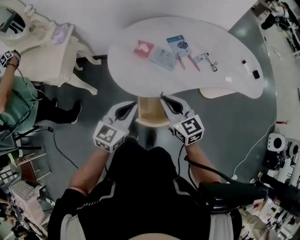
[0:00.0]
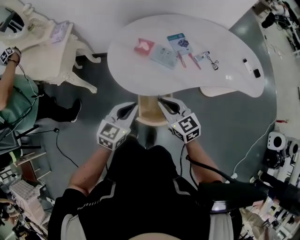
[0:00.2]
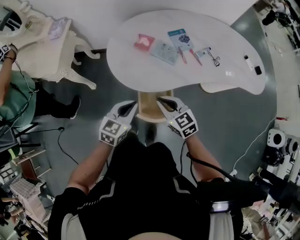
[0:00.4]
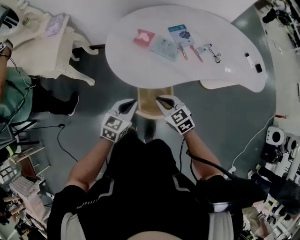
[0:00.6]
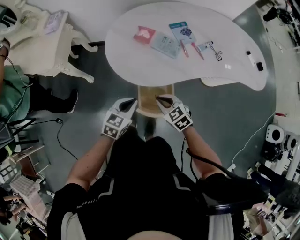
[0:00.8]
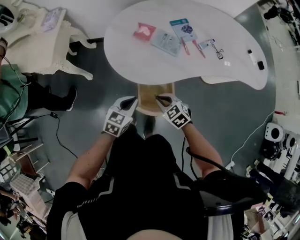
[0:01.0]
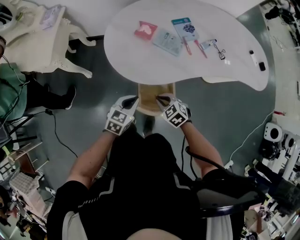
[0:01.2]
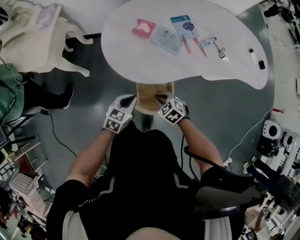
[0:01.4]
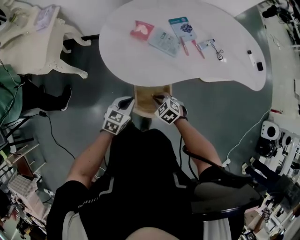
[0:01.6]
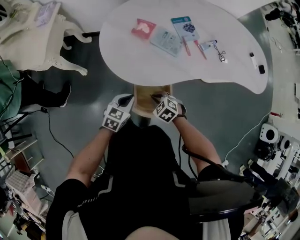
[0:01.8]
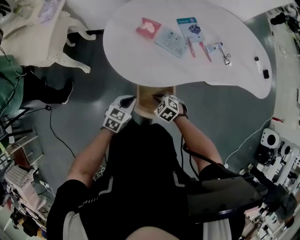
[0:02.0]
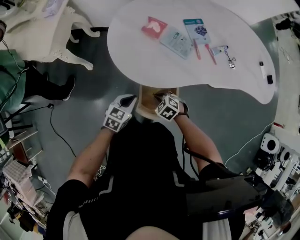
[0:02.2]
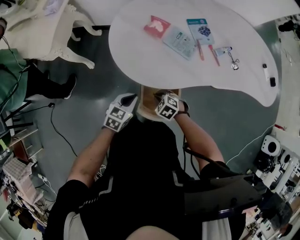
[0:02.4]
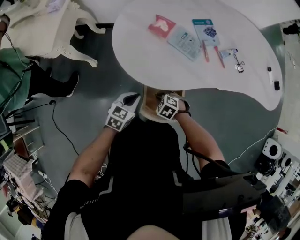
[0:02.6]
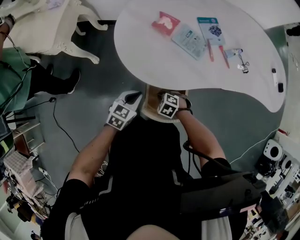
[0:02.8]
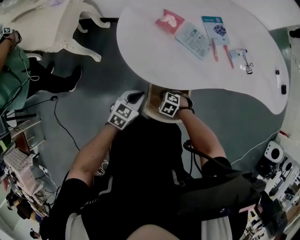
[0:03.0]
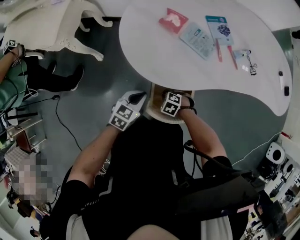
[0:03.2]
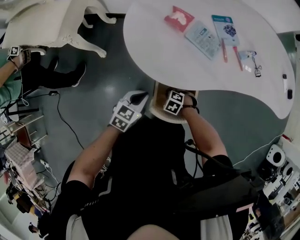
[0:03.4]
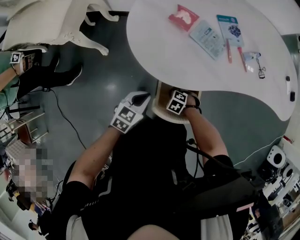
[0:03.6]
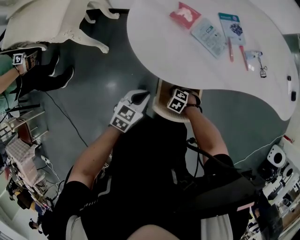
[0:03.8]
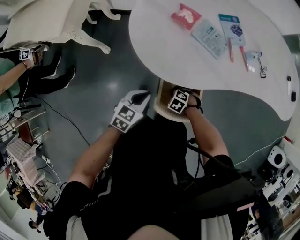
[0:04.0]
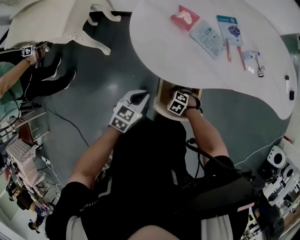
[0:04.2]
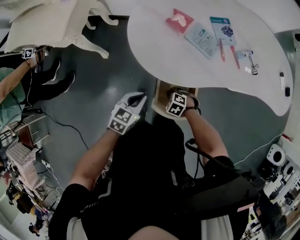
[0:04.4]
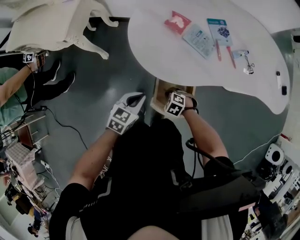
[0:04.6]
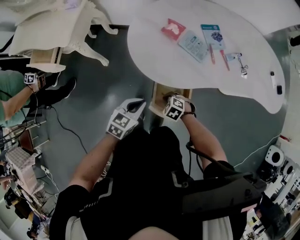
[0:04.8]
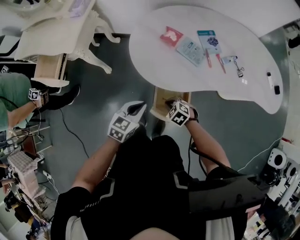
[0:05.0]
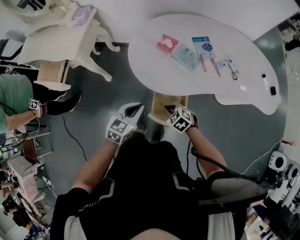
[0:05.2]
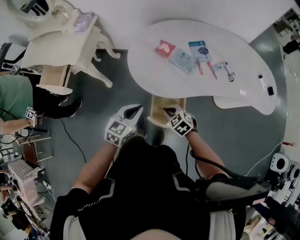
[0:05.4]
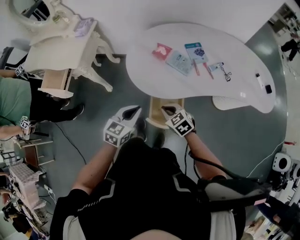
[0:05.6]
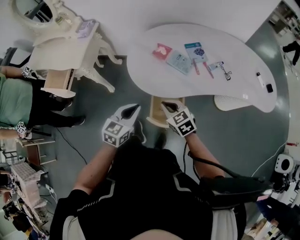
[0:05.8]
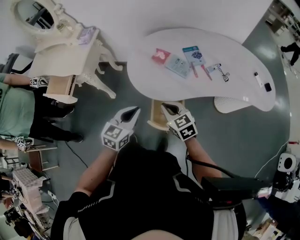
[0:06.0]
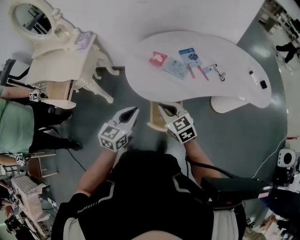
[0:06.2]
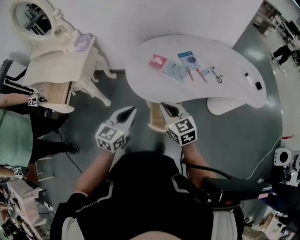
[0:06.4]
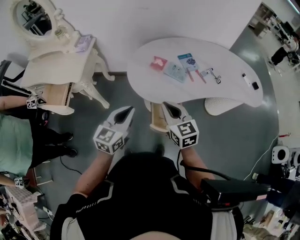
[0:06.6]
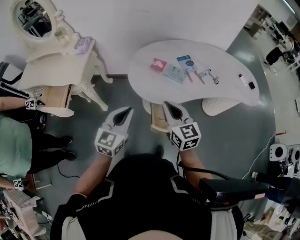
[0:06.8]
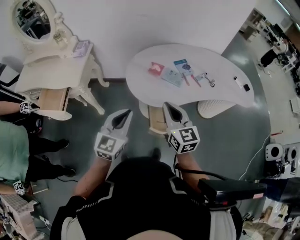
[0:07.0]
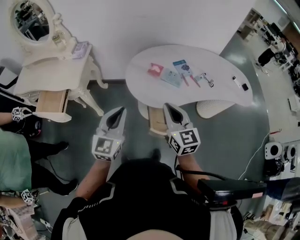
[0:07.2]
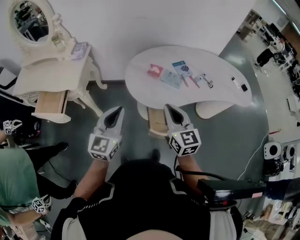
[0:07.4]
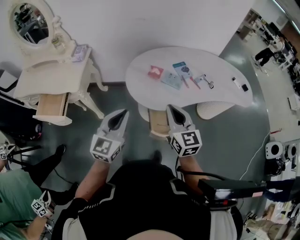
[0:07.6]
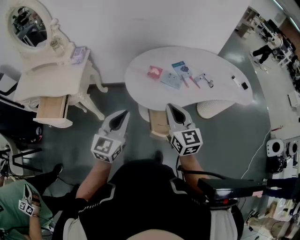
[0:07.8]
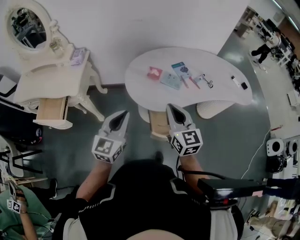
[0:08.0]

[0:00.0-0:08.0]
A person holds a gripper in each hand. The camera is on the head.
0:00.0 to 0:01.6: Both grippers move downward, about 25 cm. The right gripper tips its fingers downward by roughly 40 degrees, while the left gripper turns by approximately 20 degrees.
0:01.6 to 0:03.2: The left gripper is displaced downward by some 5 cm. The right gripper is displaced downward by some 15 cm, and swivels approximately 30 degrees.
0:03.2 to 0:04.8: Both grippers move upward, approximately 10 cm.
0:04.8 to 0:06.4: The right gripper moves upward, about 35 cm, and tilts its fingers approximately 50 degrees upward. Meanwhile the left gripper heads upward, covering approximately 20 cm, and swivels approximately 20 degrees.
0:06.4 to 0:08.0: The right gripper heads upward, covering some 10 cm, and rotates about 20 degrees, while the left gripper travels to the left and upward by roughly 10 cm.

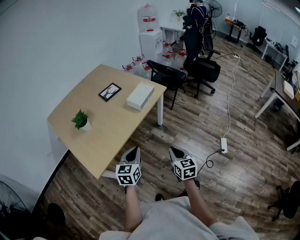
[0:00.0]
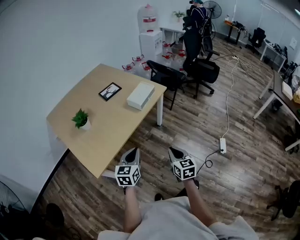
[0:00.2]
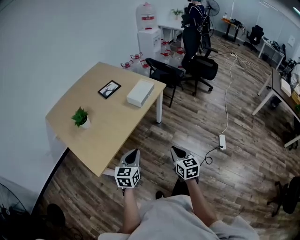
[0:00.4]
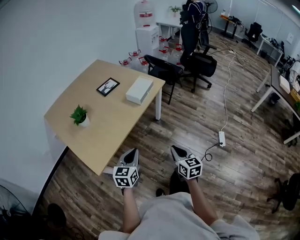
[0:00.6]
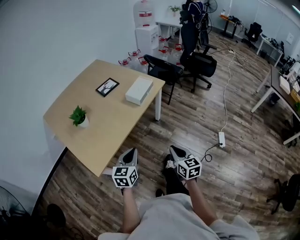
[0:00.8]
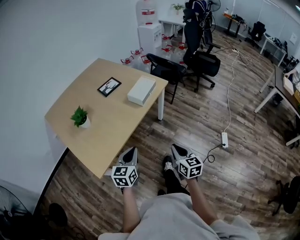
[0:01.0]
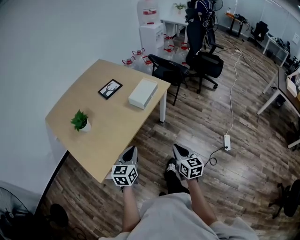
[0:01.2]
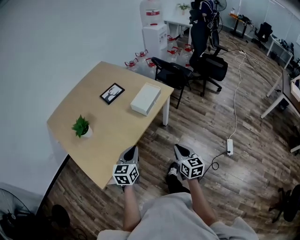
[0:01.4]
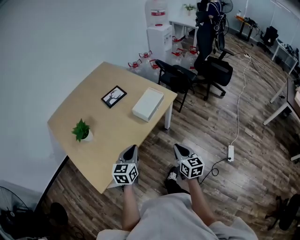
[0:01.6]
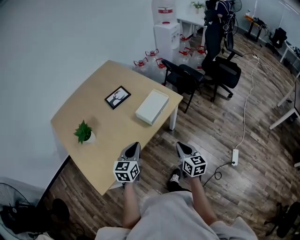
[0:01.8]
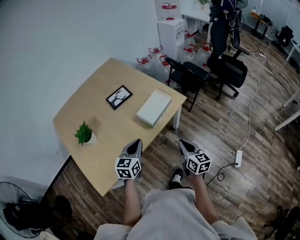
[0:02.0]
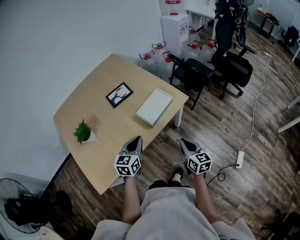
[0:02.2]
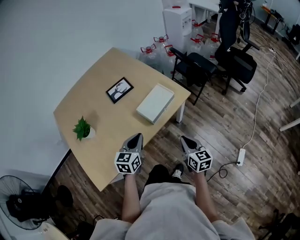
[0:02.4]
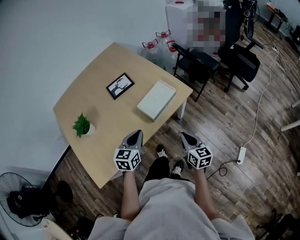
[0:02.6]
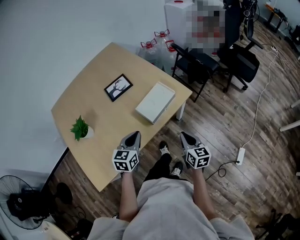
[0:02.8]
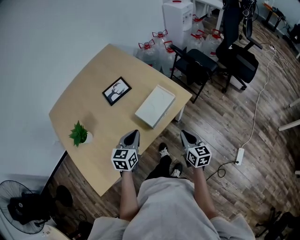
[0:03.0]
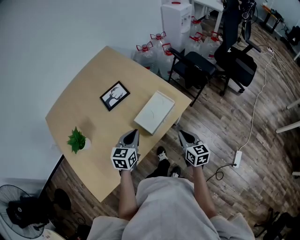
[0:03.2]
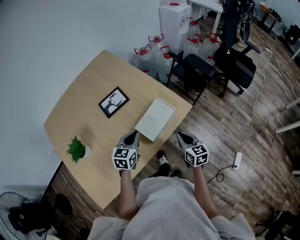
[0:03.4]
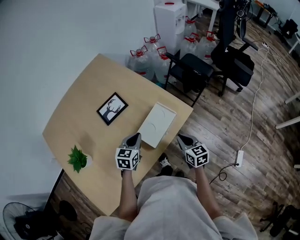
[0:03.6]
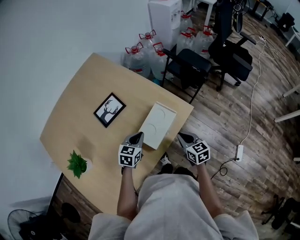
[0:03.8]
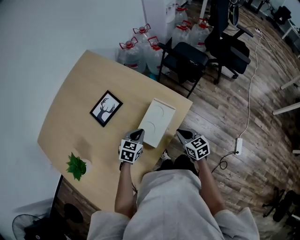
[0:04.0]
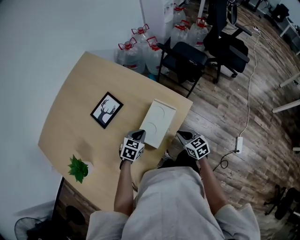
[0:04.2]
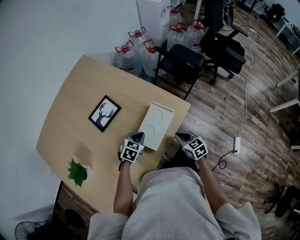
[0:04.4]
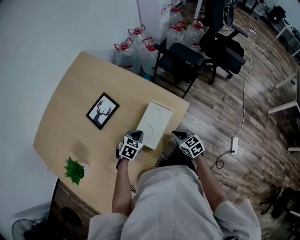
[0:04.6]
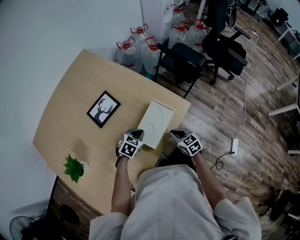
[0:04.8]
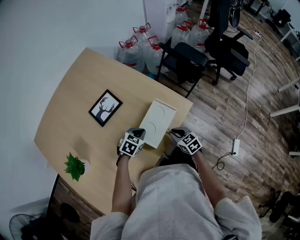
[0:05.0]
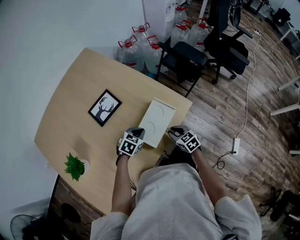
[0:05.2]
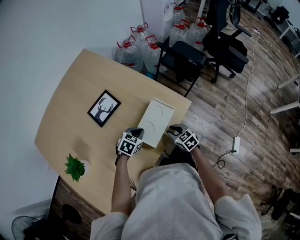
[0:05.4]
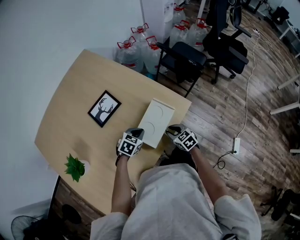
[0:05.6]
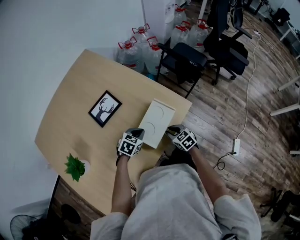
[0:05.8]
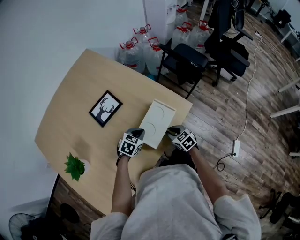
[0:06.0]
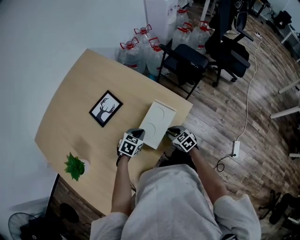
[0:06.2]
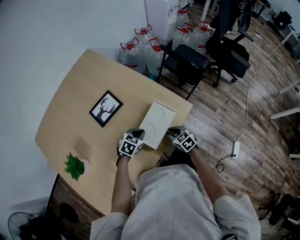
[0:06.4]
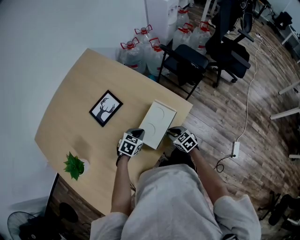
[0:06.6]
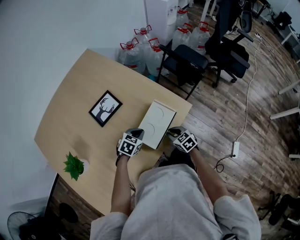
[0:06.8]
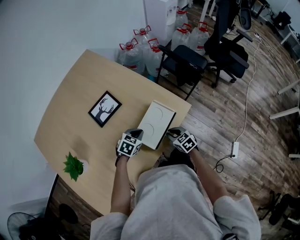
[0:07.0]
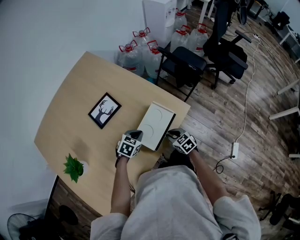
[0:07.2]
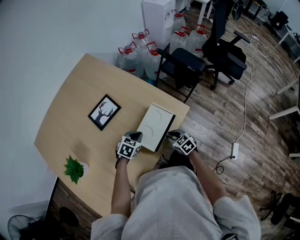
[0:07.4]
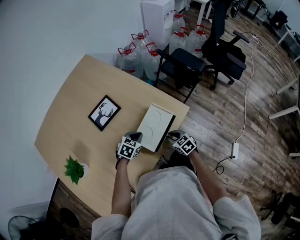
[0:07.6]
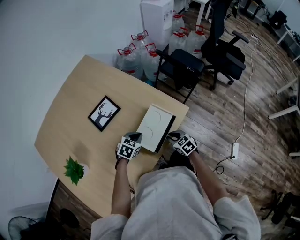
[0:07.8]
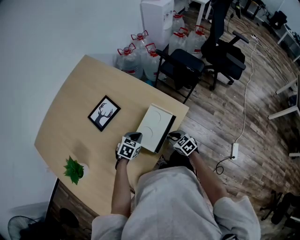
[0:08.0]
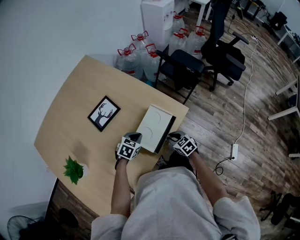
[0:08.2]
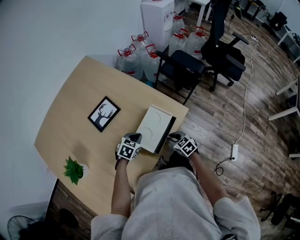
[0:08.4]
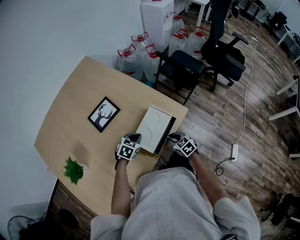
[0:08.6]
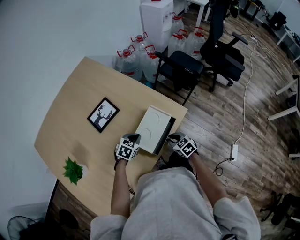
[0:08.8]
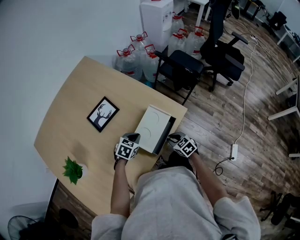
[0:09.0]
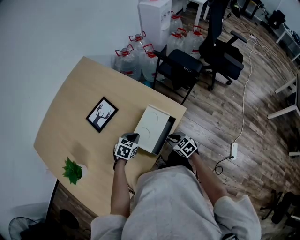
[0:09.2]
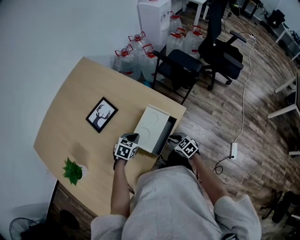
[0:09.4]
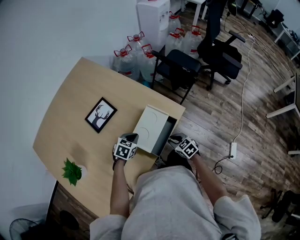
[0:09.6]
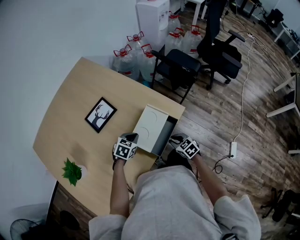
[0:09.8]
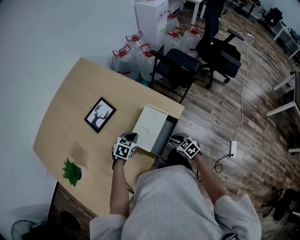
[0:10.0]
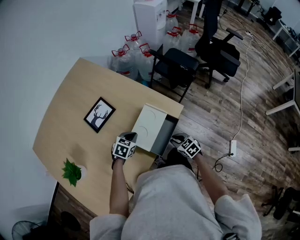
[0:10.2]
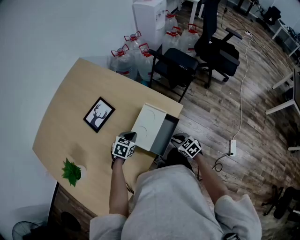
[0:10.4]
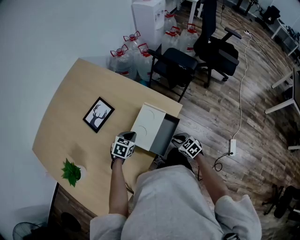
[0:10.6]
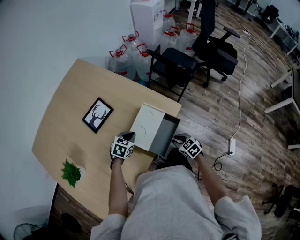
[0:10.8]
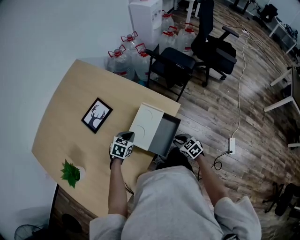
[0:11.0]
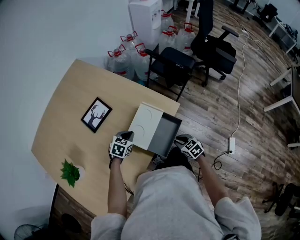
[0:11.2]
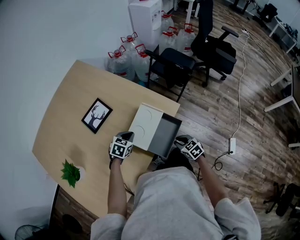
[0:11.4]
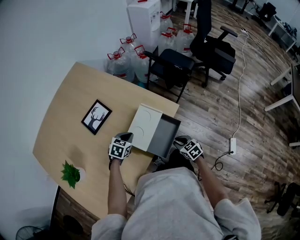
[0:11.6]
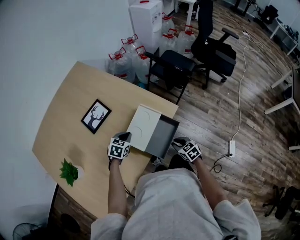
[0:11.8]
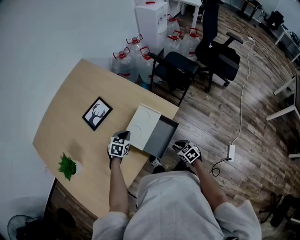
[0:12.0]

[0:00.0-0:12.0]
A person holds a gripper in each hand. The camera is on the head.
0:00.0 to 0:01.6: Both grippers travel together forward, roughly 15 cm.
0:01.6 to 0:03.0: Both grippers travel together forward, approximately 20 cm.
0:03.0 to 0:04.4: The right gripper shifts some 15 cm forward and downward, and rotates approximately 20 degrees. Meanwhile the left gripper shifts about 20 cm downward and forward, and rotates about 40 degrees.
0:04.4 to 0:06.0: The right gripper travels downward by about 5 cm.
0:06.0 to 0:09.0: The grippers stay close to where they were, moving slightly.
0:09.0 to 0:10.4: The grippers move only a little.
0:10.4 to 0:12.0: The right gripper shifts by some 5 cm.

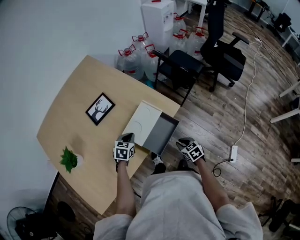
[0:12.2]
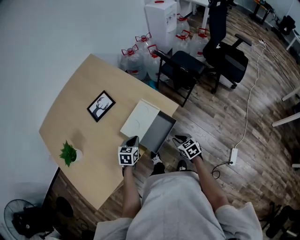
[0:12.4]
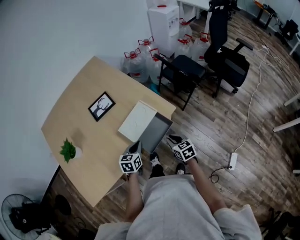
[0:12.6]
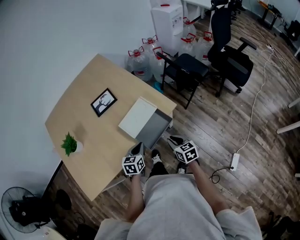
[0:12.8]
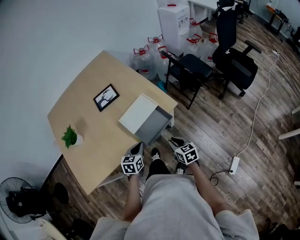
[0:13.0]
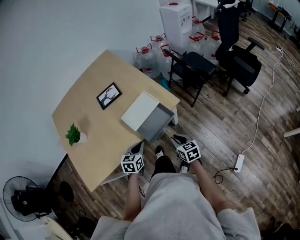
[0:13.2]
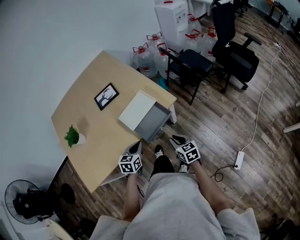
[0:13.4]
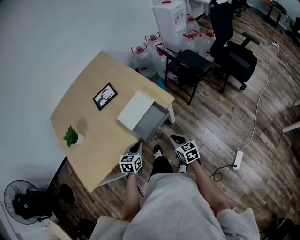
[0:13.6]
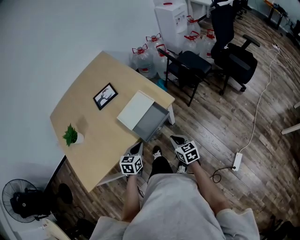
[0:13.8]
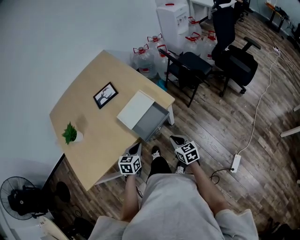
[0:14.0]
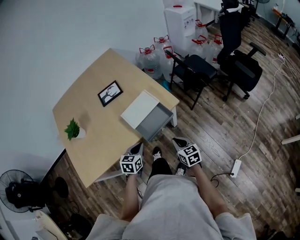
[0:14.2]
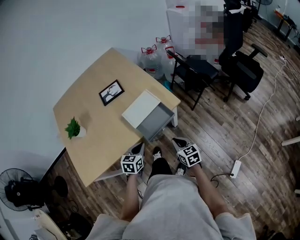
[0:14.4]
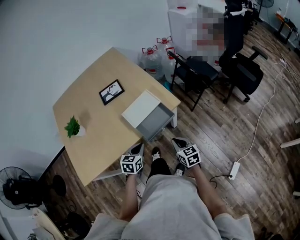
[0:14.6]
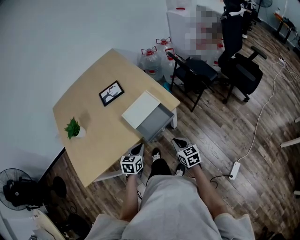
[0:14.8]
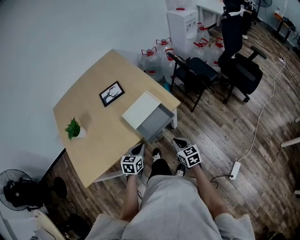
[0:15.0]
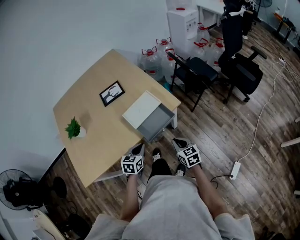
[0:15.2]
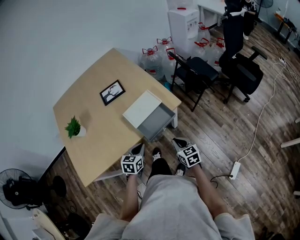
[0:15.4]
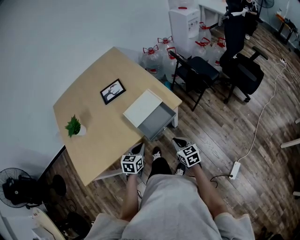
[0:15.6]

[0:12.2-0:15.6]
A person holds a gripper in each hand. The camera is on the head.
0:12.2 to 0:13.8: The right gripper shifts about 10 cm upward and backward. The left gripper travels backward and to the right by roughly 20 cm, and changes its angle by roughly 20 degrees.
0:13.8 to 0:15.6: There are only small adjustments of the grippers.
